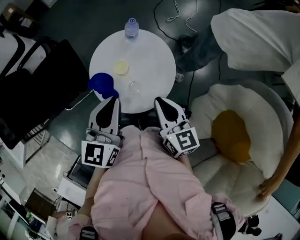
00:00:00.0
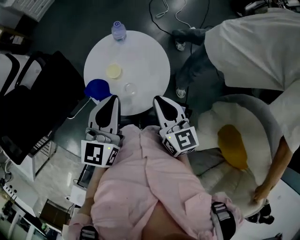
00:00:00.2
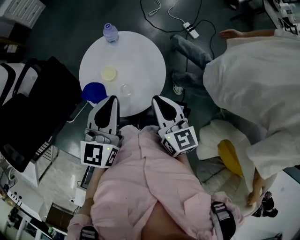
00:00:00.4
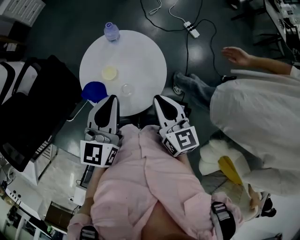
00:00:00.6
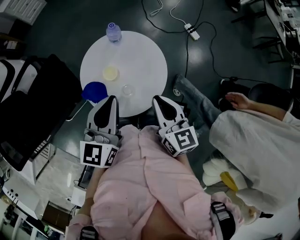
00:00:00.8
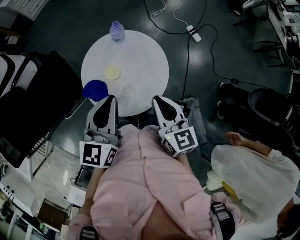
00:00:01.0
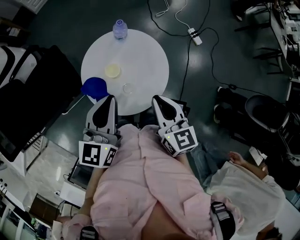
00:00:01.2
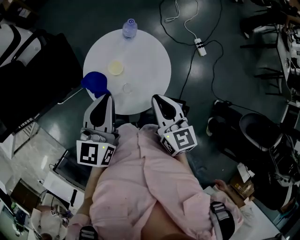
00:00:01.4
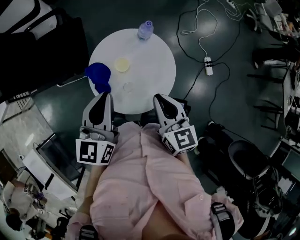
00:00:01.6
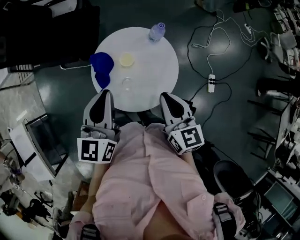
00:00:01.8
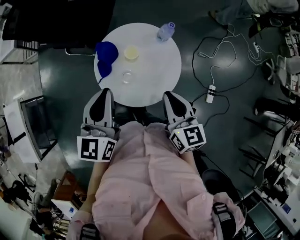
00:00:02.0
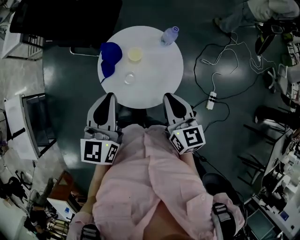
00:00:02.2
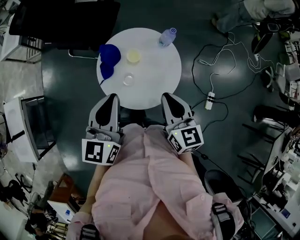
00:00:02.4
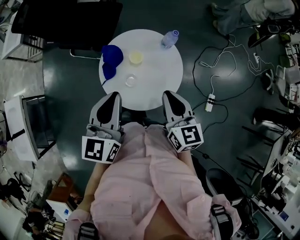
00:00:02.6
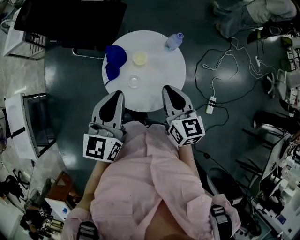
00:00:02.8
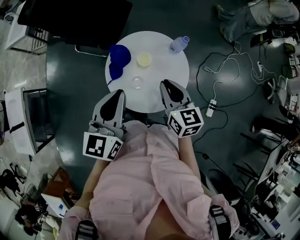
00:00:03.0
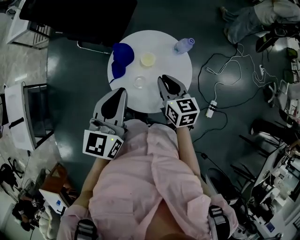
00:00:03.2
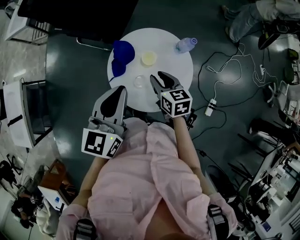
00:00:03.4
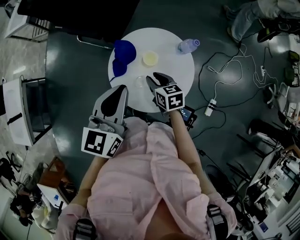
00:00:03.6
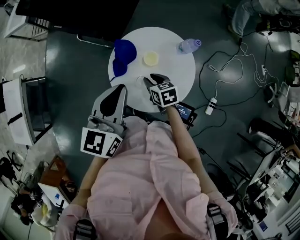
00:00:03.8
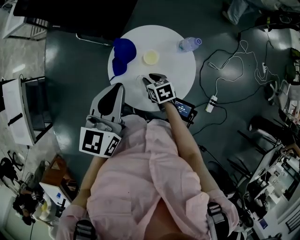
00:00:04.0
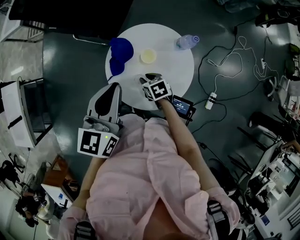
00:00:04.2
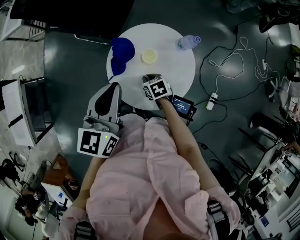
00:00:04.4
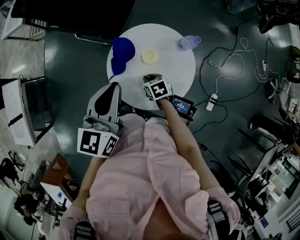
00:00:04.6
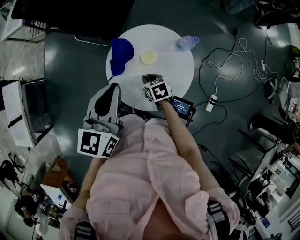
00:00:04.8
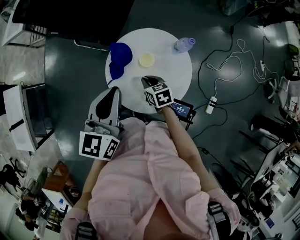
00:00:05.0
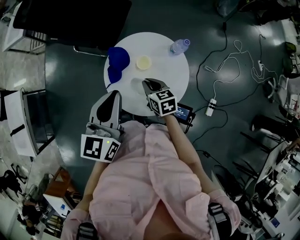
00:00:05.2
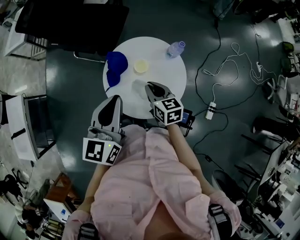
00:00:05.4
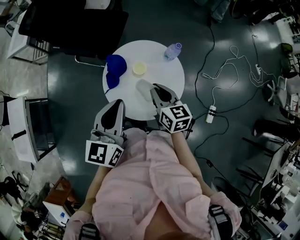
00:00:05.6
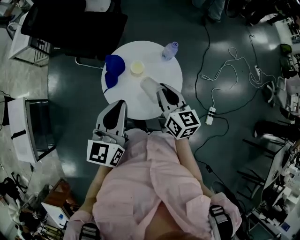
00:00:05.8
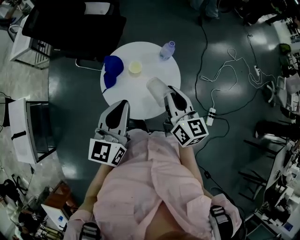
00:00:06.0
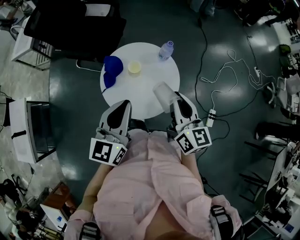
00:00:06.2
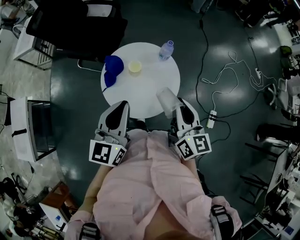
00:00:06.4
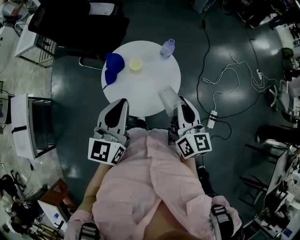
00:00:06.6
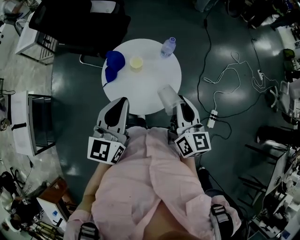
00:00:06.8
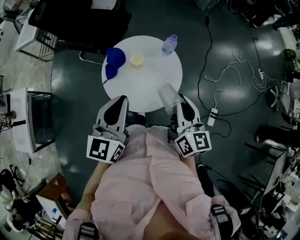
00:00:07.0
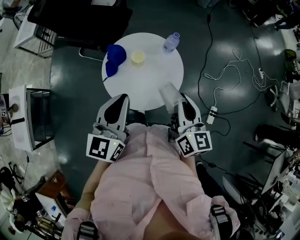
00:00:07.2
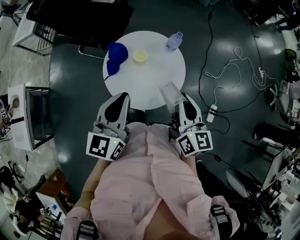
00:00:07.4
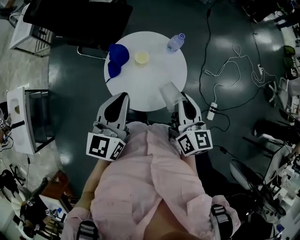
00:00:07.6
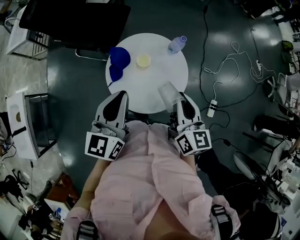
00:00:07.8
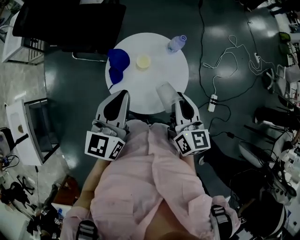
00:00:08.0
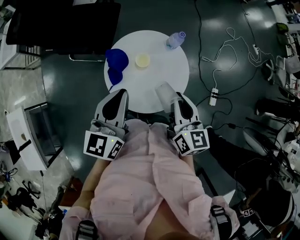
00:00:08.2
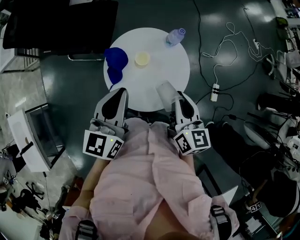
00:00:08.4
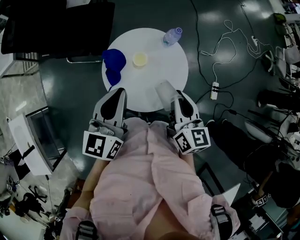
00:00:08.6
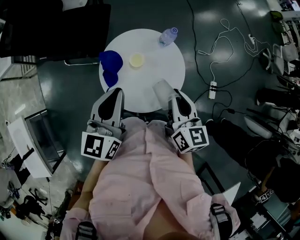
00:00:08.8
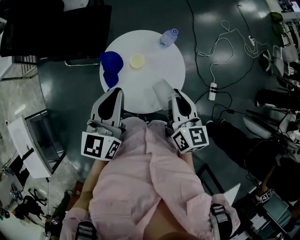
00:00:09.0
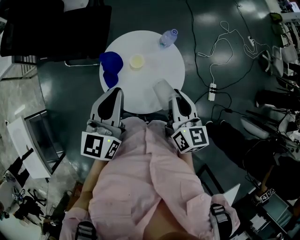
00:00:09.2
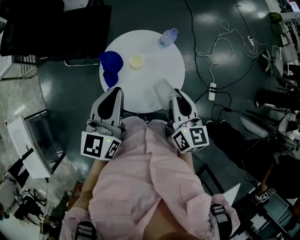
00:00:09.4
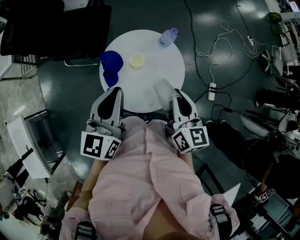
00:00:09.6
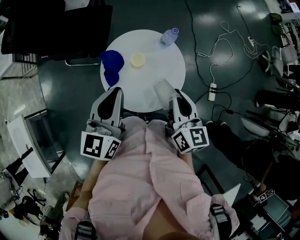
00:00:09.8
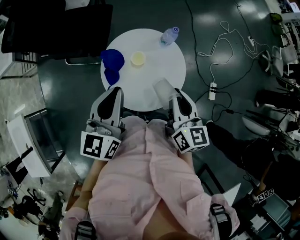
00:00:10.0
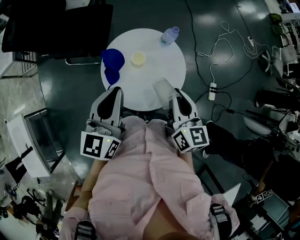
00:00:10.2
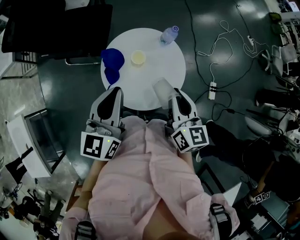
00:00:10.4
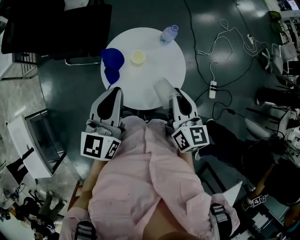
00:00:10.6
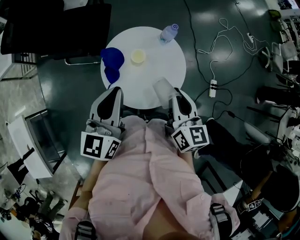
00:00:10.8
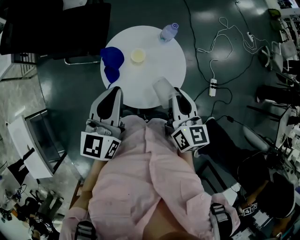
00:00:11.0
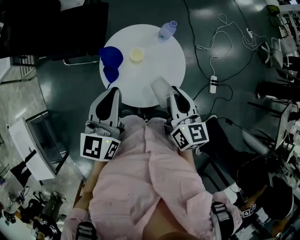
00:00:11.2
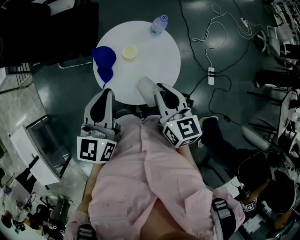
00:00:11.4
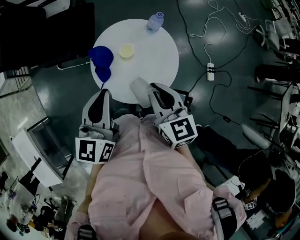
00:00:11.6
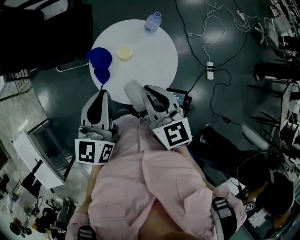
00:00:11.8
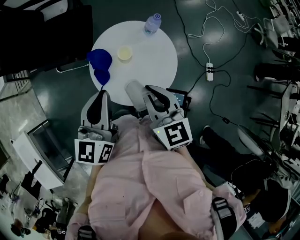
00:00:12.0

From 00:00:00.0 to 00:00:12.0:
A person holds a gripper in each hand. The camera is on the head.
From 00:00:00.0 to 00:00:01.6: The right gripper shifts by approximately 5 cm, and changes its angle by roughly 20 degrees; the left gripper swivels approximately 20 degrees.
From 00:00:01.6 to 00:00:03.0: The right gripper ends up roughly 5 cm from where it was, and swivels some 30 degrees, while the left gripper moves approximately 5 cm, and rotates approximately 20 degrees.
From 00:00:03.0 to 00:00:04.4: The left gripper moves forward, some 5 cm. Meanwhile the right gripper heads downward, covering some 25 cm, and points its fingers approximately 40 degrees further downward.
From 00:00:04.4 to 00:00:06.0: The right gripper goes approximately 30 cm upward, and points its fingers approximately 50 degrees further upward. Meanwhile the left gripper heads backward and to the right, covering approximately 15 cm.
From 00:00:07.6 to 00:00:09.0: The left gripper heads forward and to the left, covering some 10 cm, while the right gripper ends up roughly 5 cm from where it was.
From 00:00:09.0 to 00:00:10.4: The grippers make only small movements.
From 00:00:10.4 to 00:00:12.0: The right gripper shifts some 5 cm to the left.

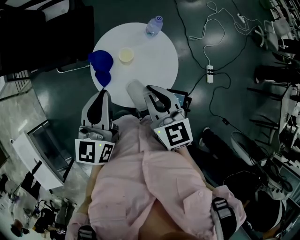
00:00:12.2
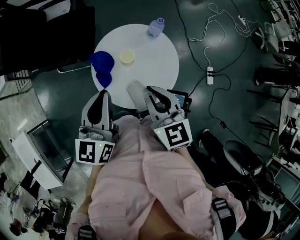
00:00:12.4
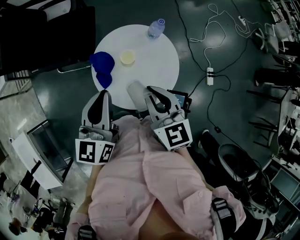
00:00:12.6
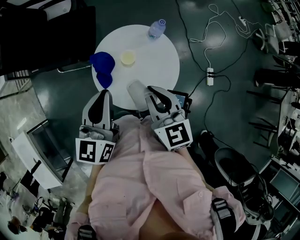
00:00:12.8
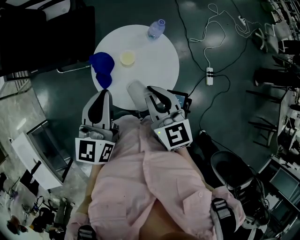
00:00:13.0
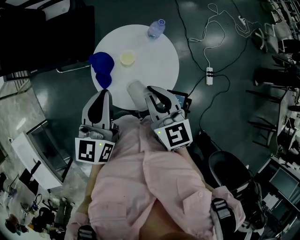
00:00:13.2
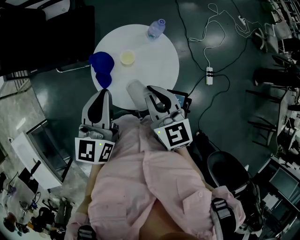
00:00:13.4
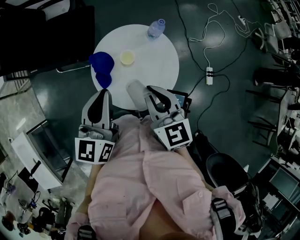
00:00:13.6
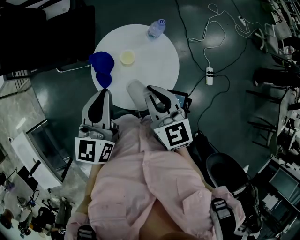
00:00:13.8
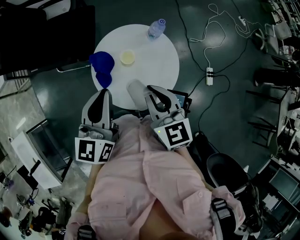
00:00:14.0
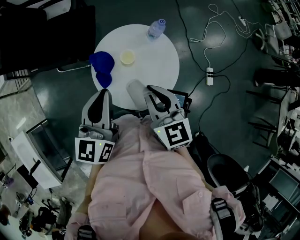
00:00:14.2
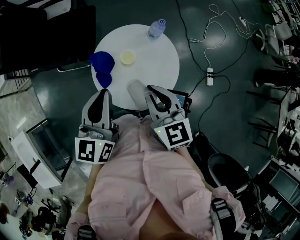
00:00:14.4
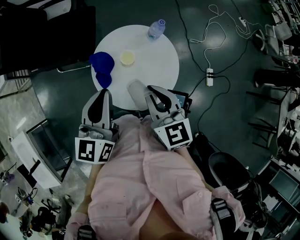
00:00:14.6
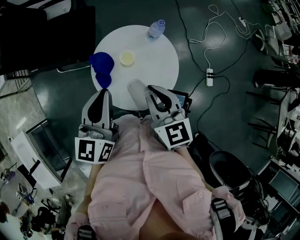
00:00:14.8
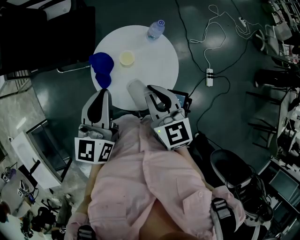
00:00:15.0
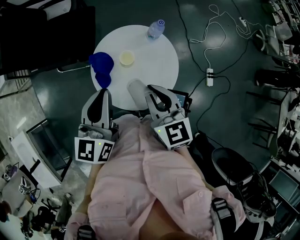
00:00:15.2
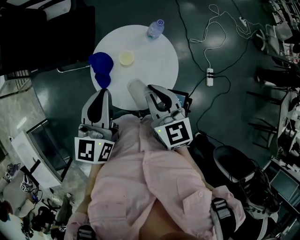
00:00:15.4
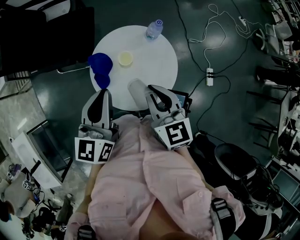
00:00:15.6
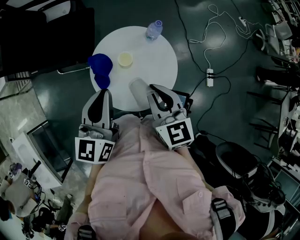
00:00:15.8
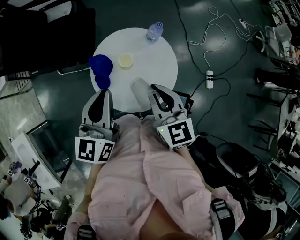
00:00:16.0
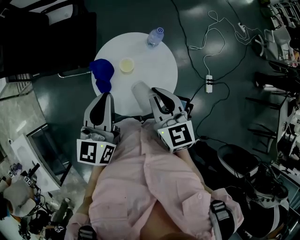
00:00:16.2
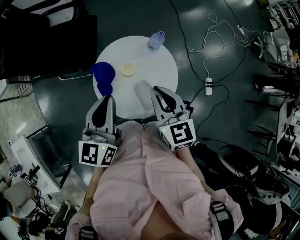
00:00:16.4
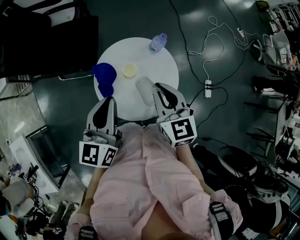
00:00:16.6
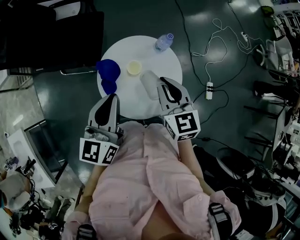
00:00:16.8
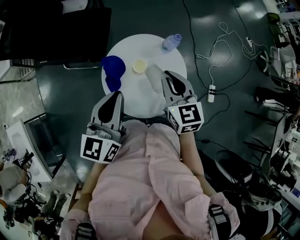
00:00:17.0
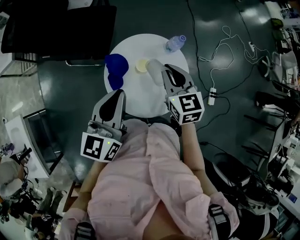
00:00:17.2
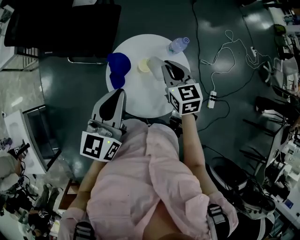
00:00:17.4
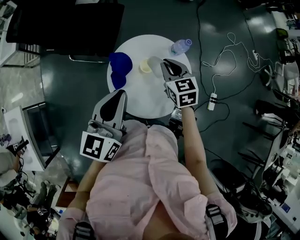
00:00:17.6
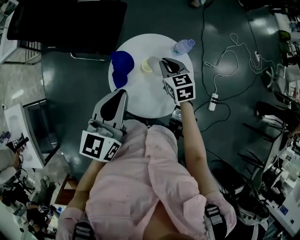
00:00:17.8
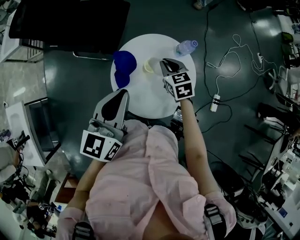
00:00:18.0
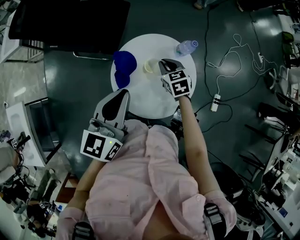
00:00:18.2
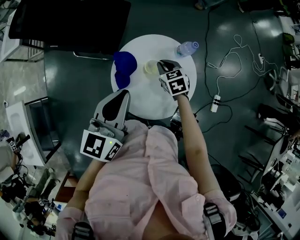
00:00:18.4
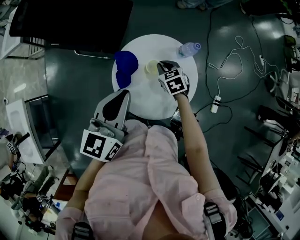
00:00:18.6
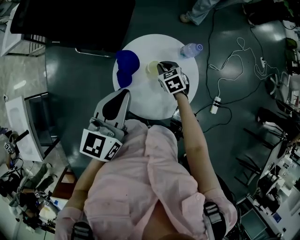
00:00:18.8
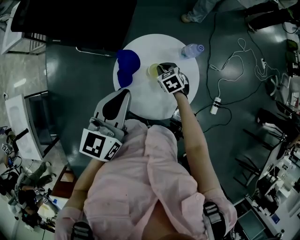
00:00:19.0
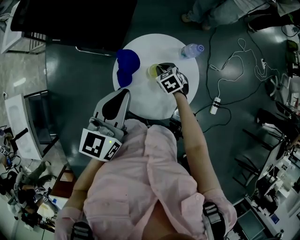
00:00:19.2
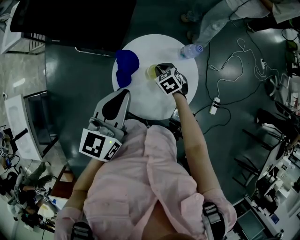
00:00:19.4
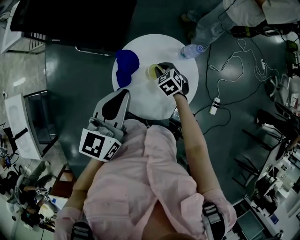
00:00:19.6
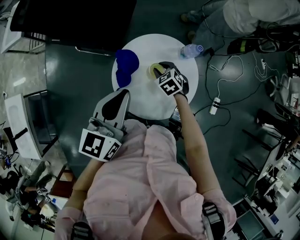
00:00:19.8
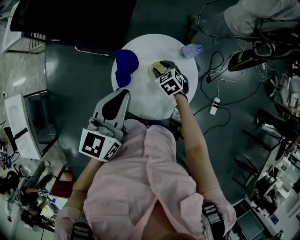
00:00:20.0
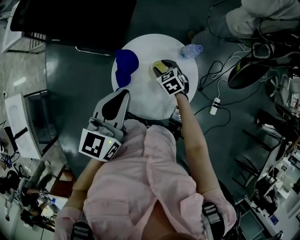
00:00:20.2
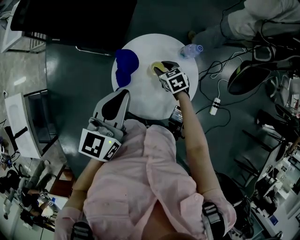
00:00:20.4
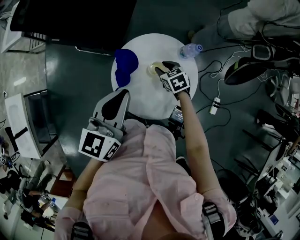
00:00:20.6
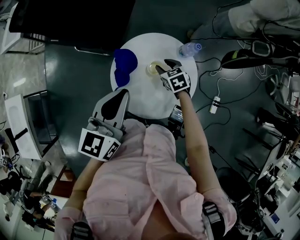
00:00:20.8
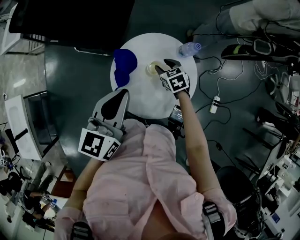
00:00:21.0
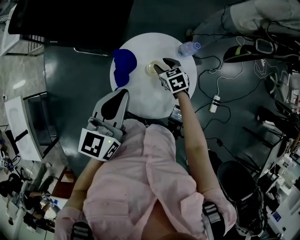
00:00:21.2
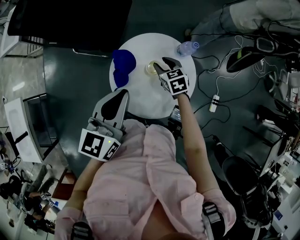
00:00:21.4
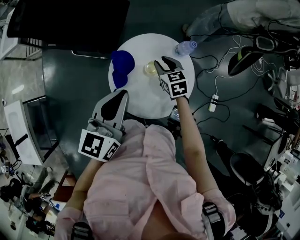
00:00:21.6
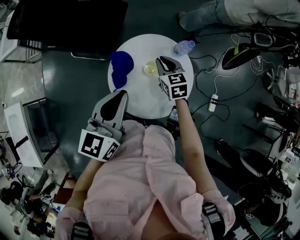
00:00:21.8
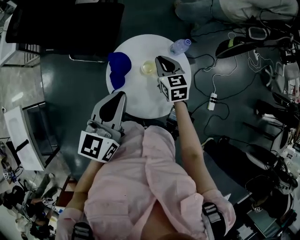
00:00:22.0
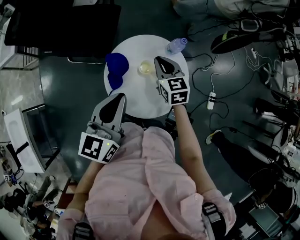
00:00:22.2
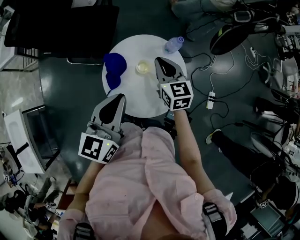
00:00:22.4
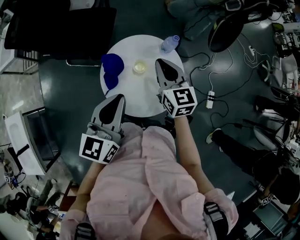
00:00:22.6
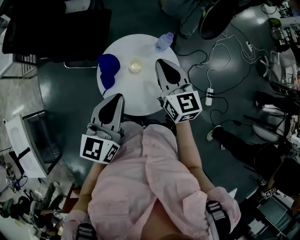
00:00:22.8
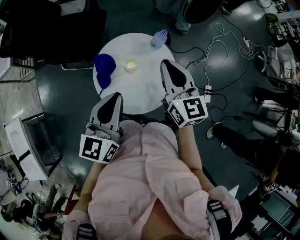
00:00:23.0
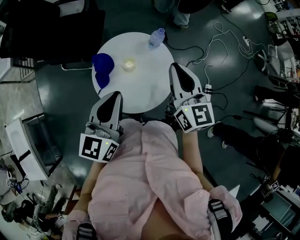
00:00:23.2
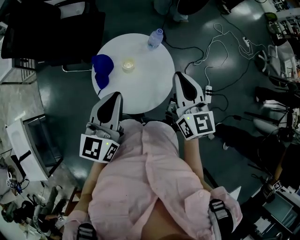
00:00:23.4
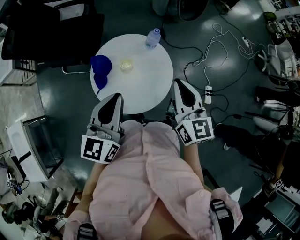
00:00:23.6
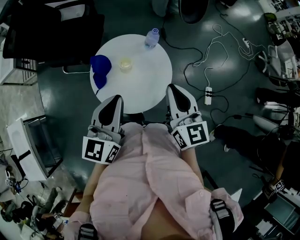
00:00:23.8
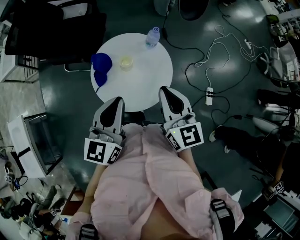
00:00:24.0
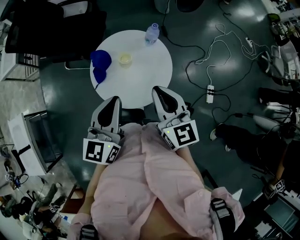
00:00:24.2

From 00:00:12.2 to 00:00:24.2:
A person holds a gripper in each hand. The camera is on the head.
From 00:00:12.2 to 00:00:13.8: The grippers stay close to where they were, moving slightly.
From 00:00:13.8 to 00:00:15.2: Both grippers stay about where they are.
From 00:00:15.2 to 00:00:16.6: The grippers move only a little.
From 00:00:16.6 to 00:00:18.2: The right gripper is displaced downward and forward by about 20 cm, and changes its angle by about 30 degrees.
From 00:00:18.2 to 00:00:19.8: The right gripper moves downward, about 5 cm, and turns by some 20 degrees.
From 00:00:19.8 to 00:00:21.2: The grippers stay close to where they were, moving slightly.
From 00:00:21.2 to 00:00:22.6: The left gripper shifts by approximately 5 cm; the right gripper heads upward, covering about 20 cm, tilts its fingers some 30 degrees upward, and closes its fingers.
From 00:00:22.6 to 00:00:24.2: The left gripper is displaced backward and to the right by approximately 10 cm; the right gripper shifts some 20 cm backward and to the right.
